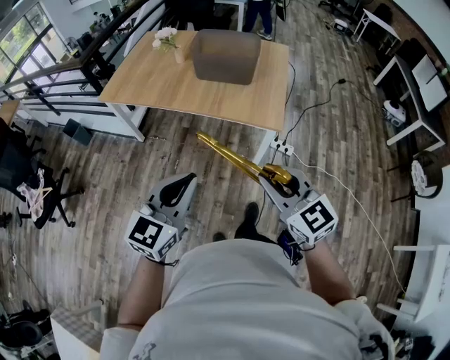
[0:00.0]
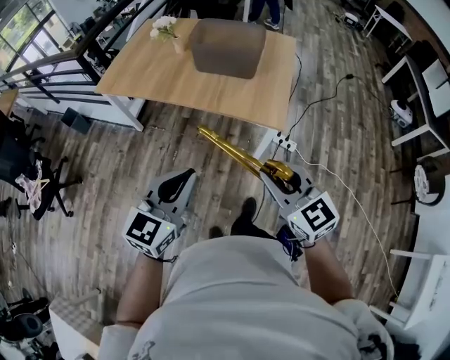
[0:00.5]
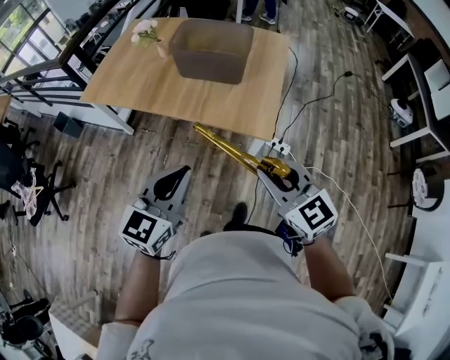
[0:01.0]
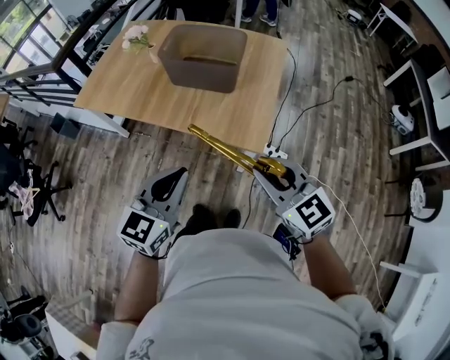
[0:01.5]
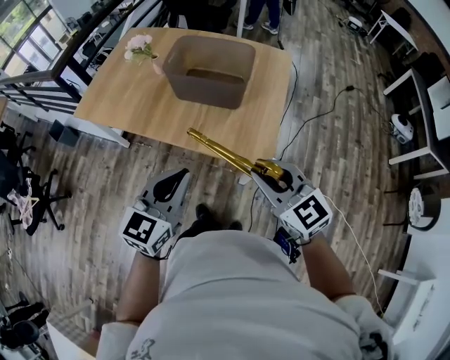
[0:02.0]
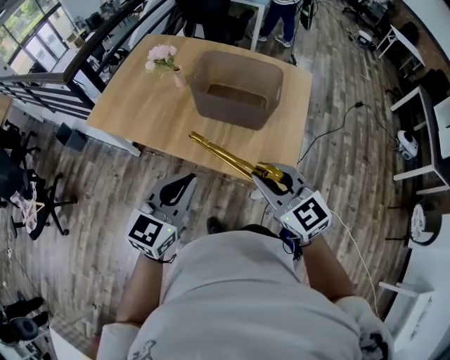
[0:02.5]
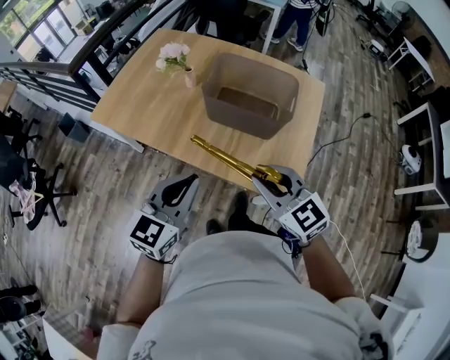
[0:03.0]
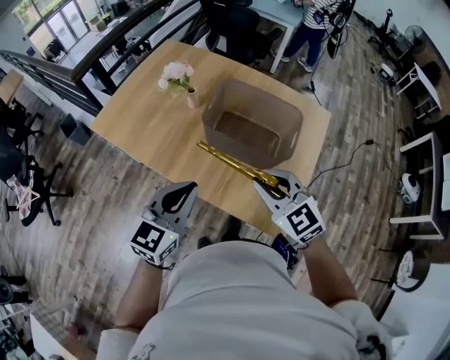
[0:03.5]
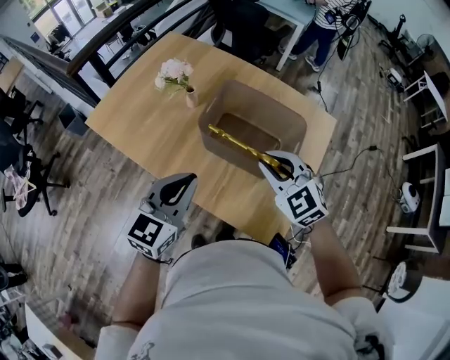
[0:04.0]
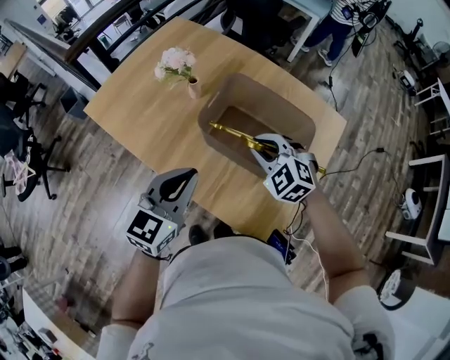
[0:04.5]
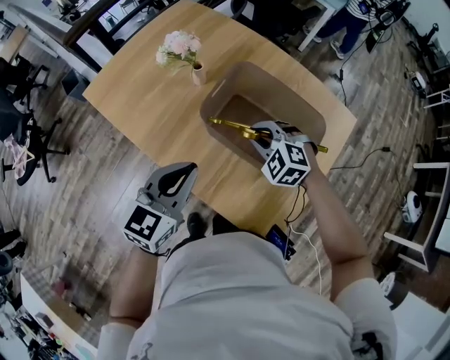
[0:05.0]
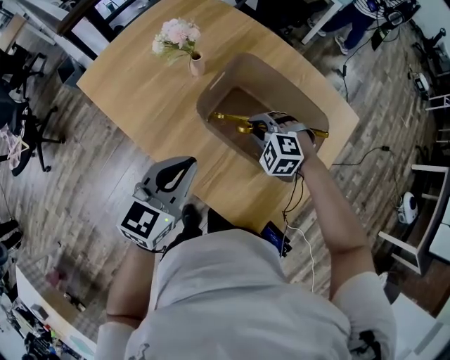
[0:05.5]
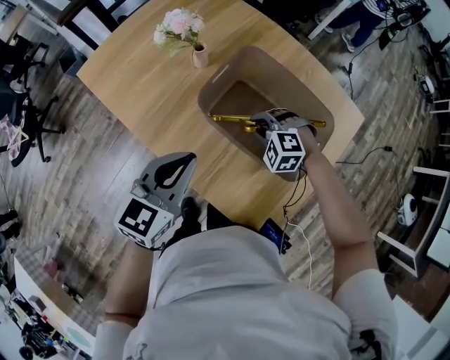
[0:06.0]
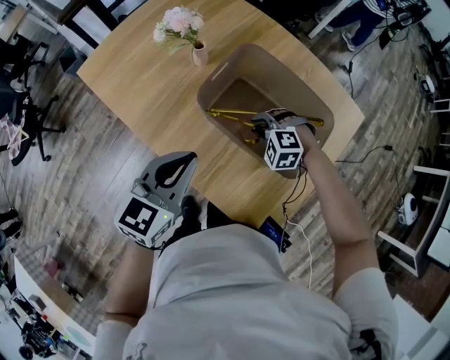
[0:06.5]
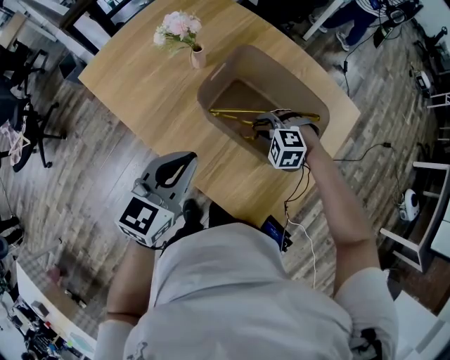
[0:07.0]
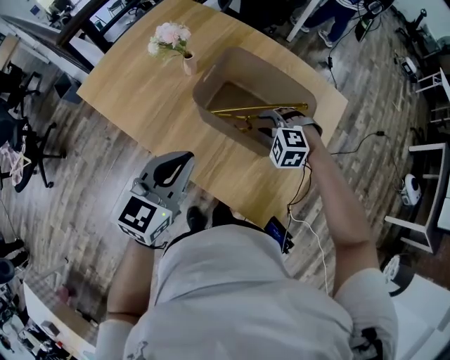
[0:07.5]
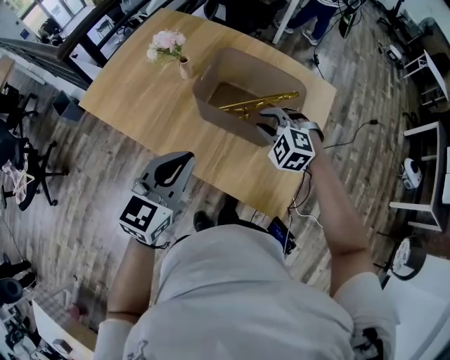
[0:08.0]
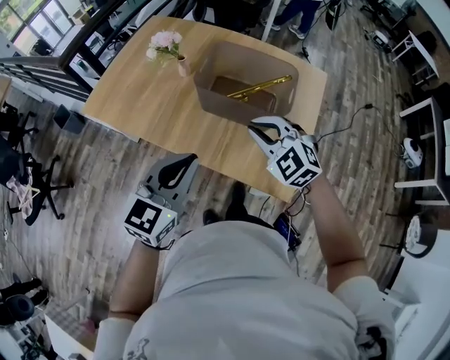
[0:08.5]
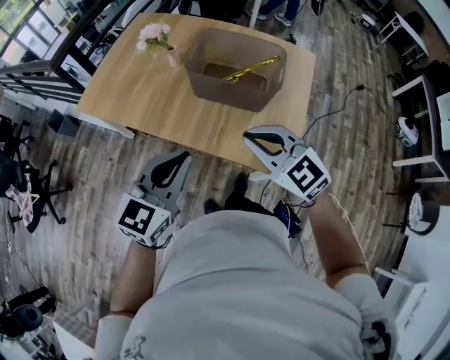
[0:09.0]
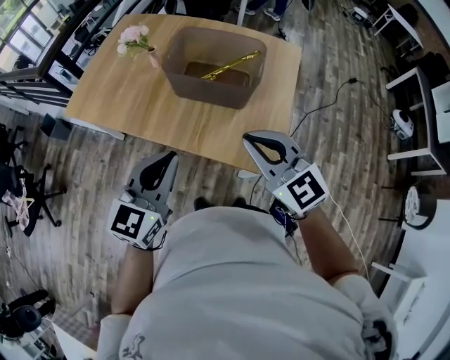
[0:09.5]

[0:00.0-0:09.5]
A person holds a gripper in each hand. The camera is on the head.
0:00.0 to 0:02.0: The left gripper moves forward and to the right, about 30 cm, while the right gripper shifts some 25 cm forward.
0:02.0 to 0:04.0: Both grippers move forward, about 30 cm. The right gripper turns by approximately 30 degrees.
0:04.0 to 0:05.5: The right gripper heads downward and forward, covering approximately 20 cm, and rotates some 40 degrees, while the left gripper travels downward and forward by some 10 cm.
0:05.5 to 0:07.5: The left gripper ends up roughly 5 cm from where it was. Meanwhile the right gripper changes place by about 5 cm.
0:07.5 to 0:09.5: The left gripper goes about 15 cm backward. The right gripper travels backward and upward by approximately 35 cm, tilts its fingers some 50 degrees upward, and closes its fingers.

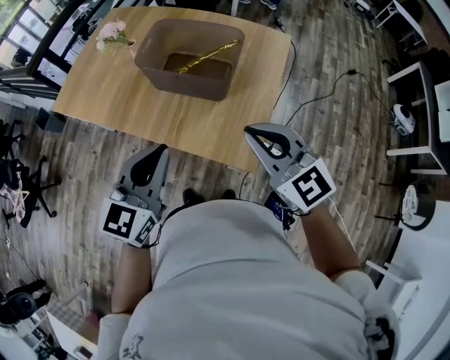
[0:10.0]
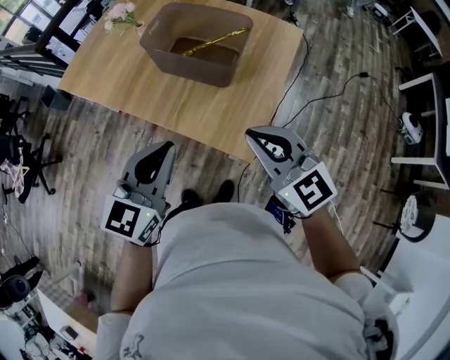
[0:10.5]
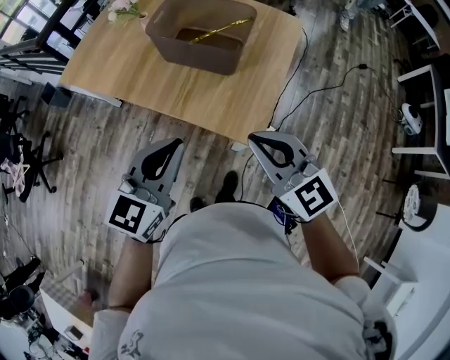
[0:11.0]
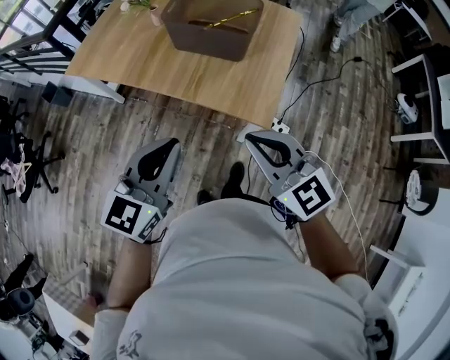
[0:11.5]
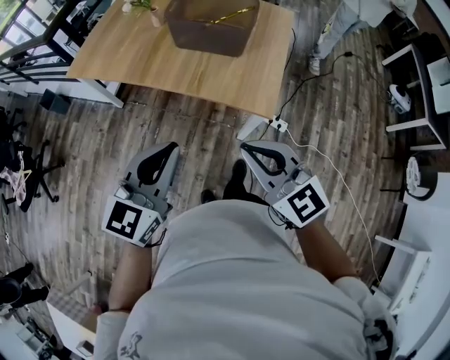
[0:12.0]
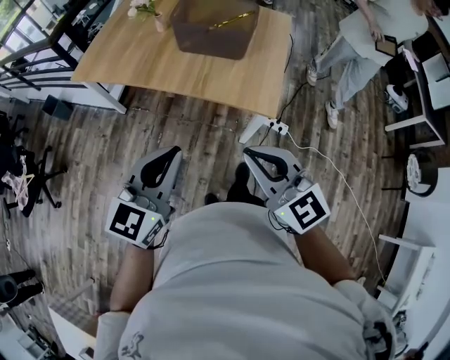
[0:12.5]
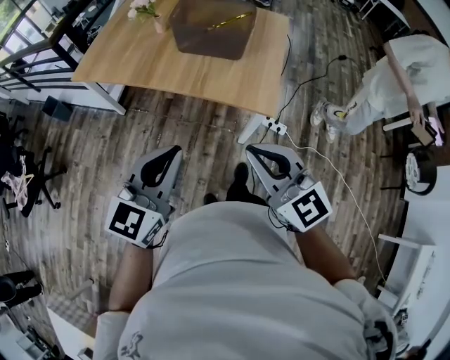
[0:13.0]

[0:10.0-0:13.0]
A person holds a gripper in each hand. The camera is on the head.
0:10.0 to 0:11.5: Both grippers move backward and to the left, roughly 20 cm.
0:11.5 to 0:13.0: The two grippers go approximately 10 cm backward and to the left.

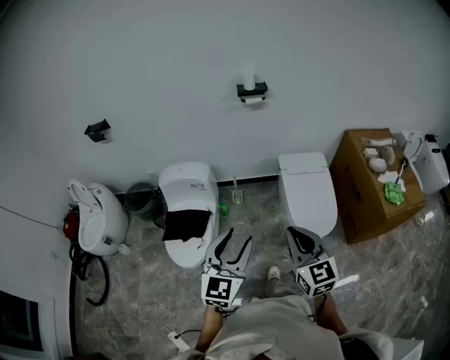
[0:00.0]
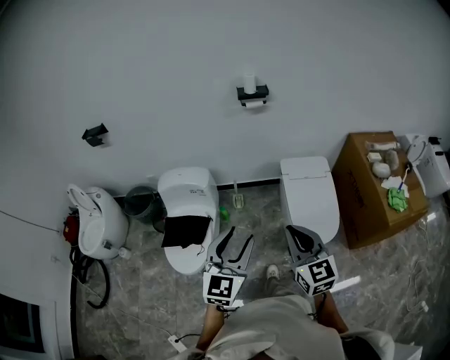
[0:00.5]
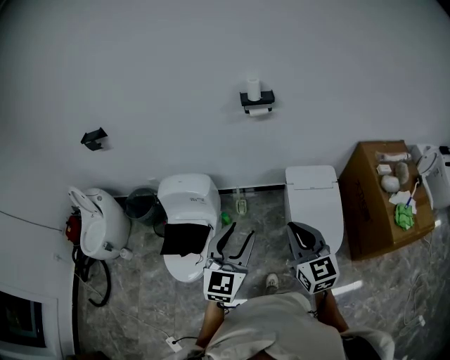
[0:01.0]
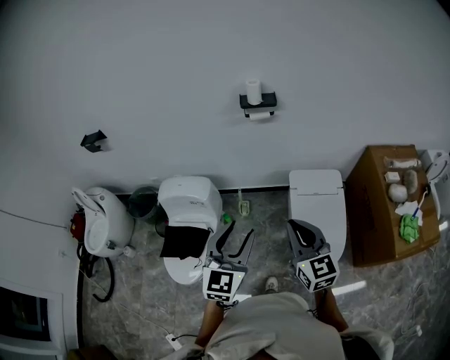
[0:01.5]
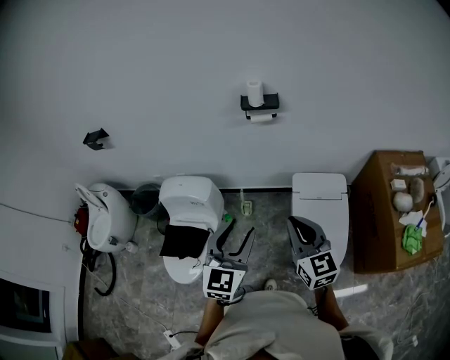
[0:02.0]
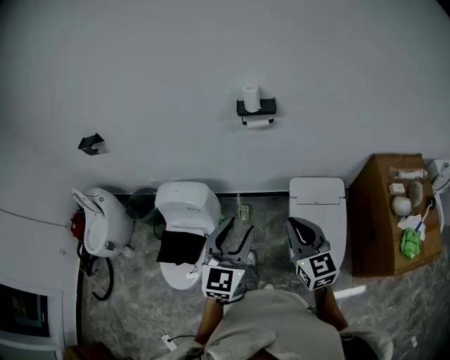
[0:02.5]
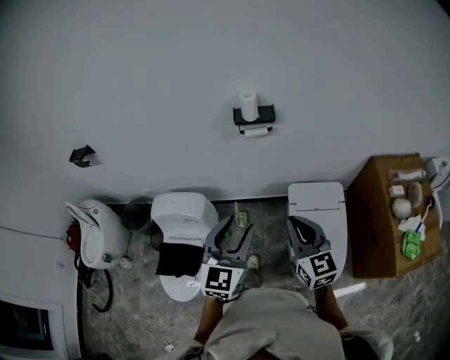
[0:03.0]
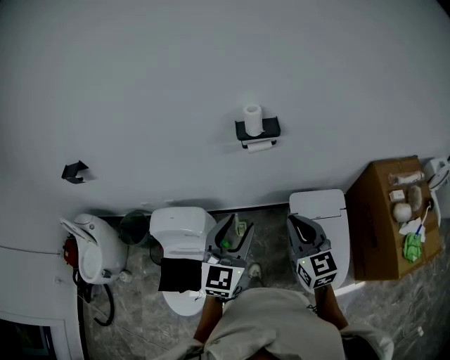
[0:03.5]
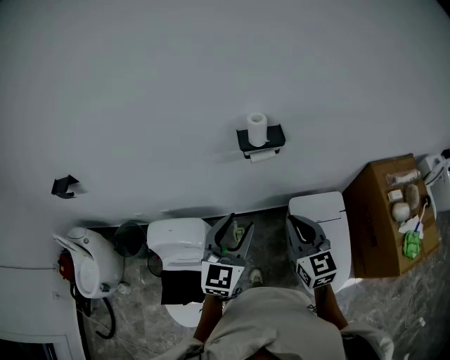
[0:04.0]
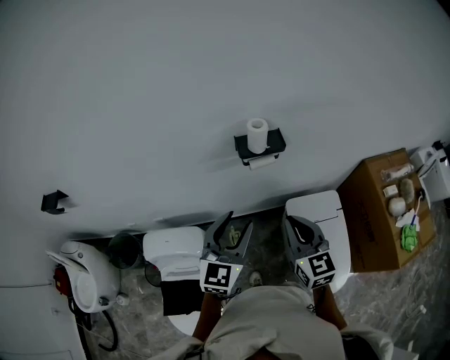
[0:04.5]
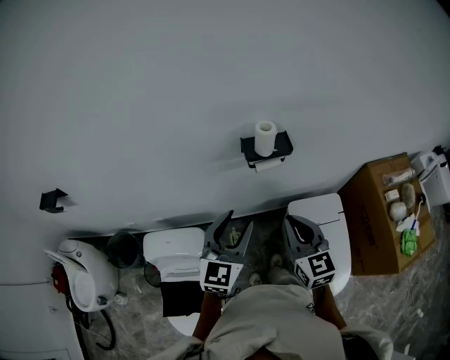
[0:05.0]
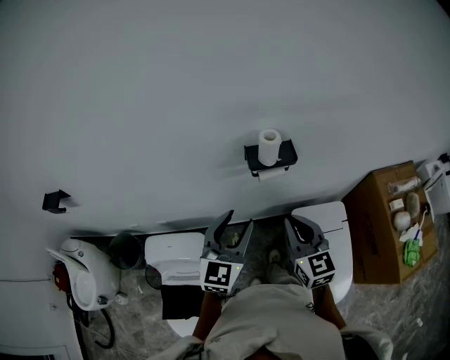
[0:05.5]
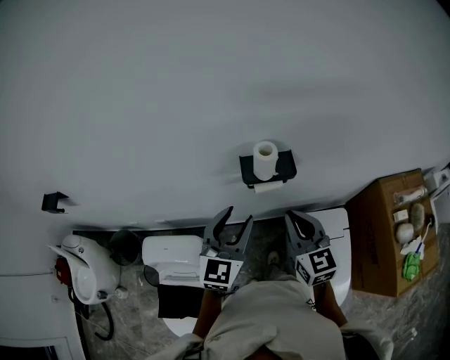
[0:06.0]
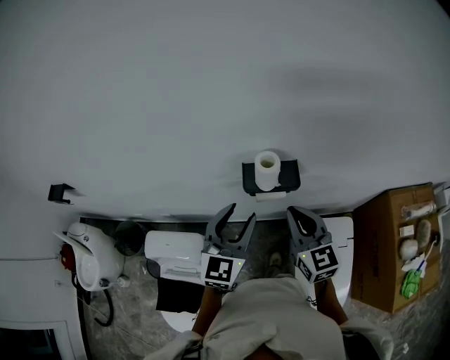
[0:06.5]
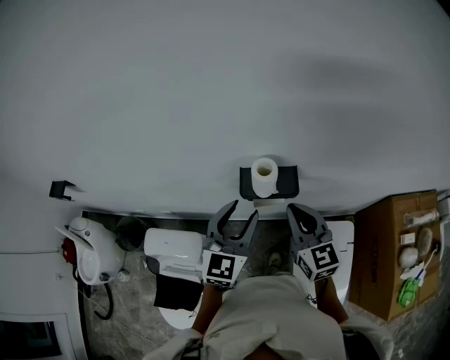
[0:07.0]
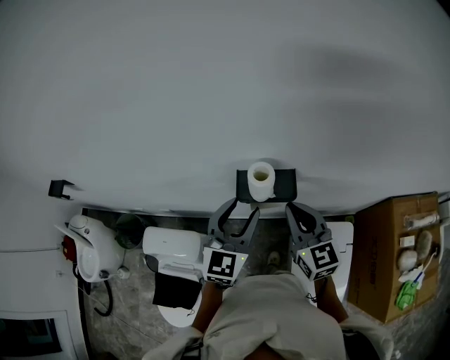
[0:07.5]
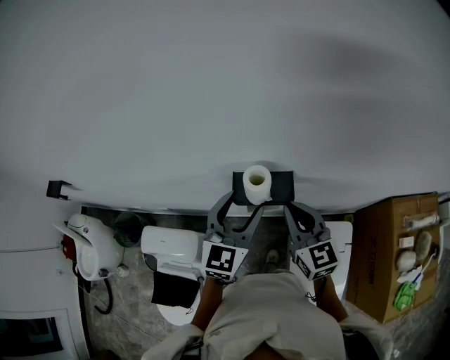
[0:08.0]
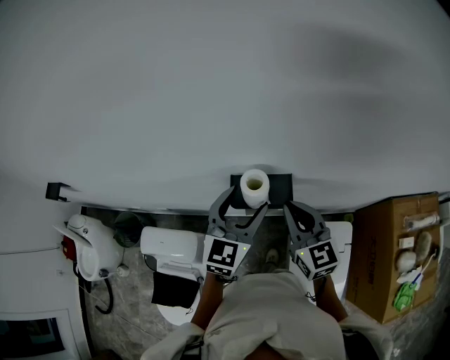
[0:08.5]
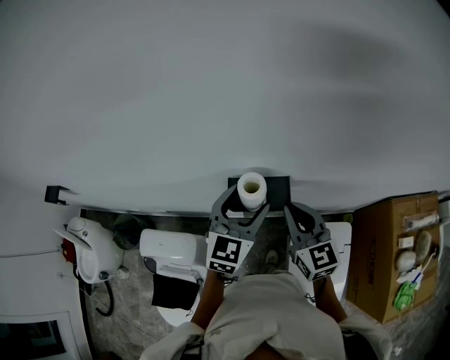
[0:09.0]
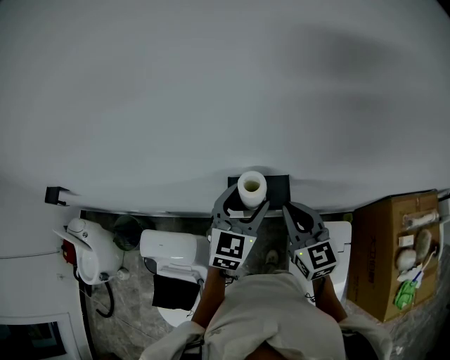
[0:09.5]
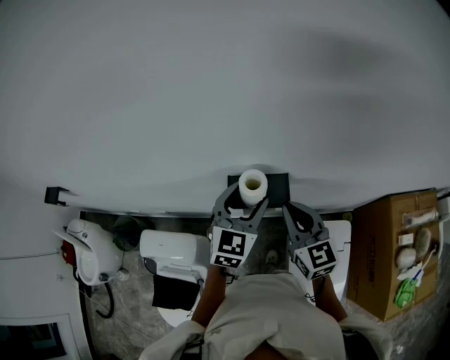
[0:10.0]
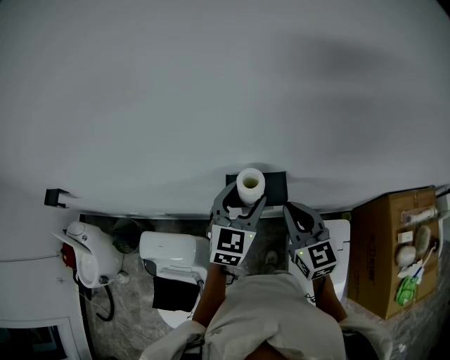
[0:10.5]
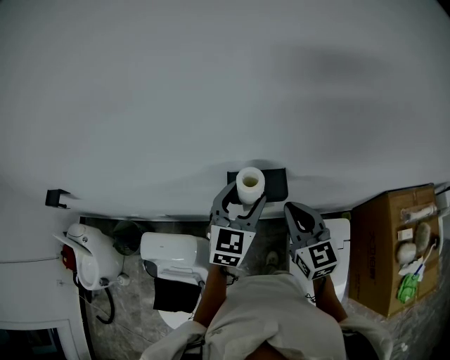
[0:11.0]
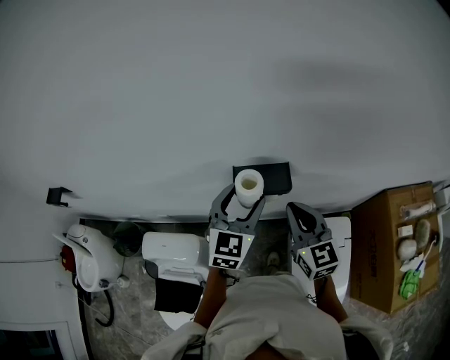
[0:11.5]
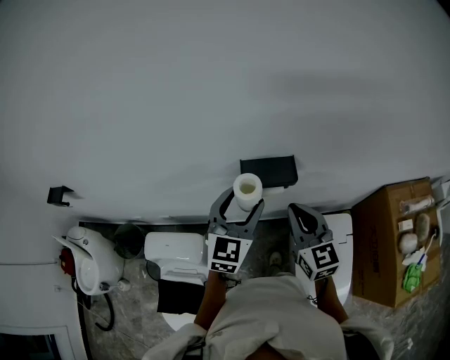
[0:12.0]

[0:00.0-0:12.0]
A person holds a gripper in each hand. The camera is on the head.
0:00.0 to 0:02.0: The grippers both shift forward by about 25 cm.
0:02.0 to 0:04.0: The two grippers go about 20 cm forward.
0:04.0 to 0:06.0: The grippers both shift forward by some 15 cm.
0:06.0 to 0:08.0: The left gripper moves forward and to the right, roughly 10 cm. Meanwhile the right gripper travels forward by approximately 10 cm.
0:08.0 to 0:10.0: The grippers stay close to where they were, moving slightly.
0:10.0 to 0:12.0: Both grippers move backward, roughly 5 cm.

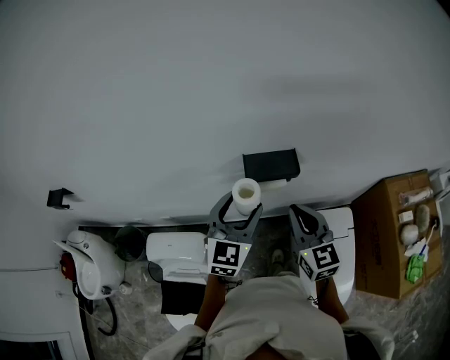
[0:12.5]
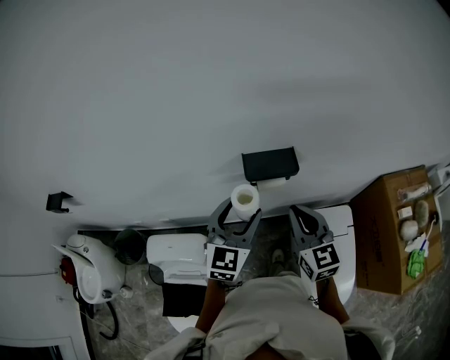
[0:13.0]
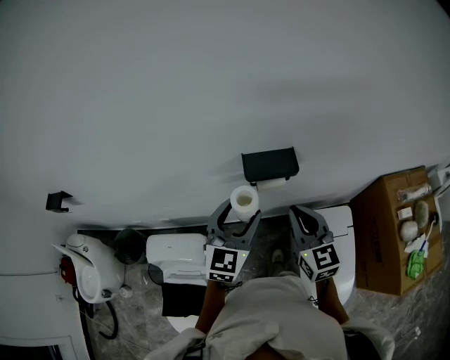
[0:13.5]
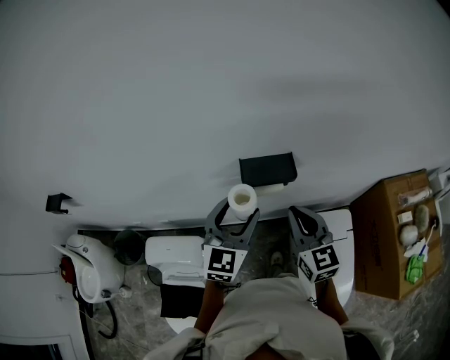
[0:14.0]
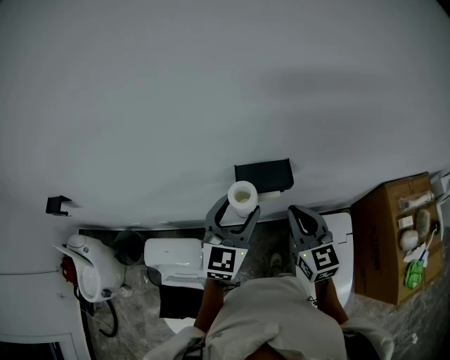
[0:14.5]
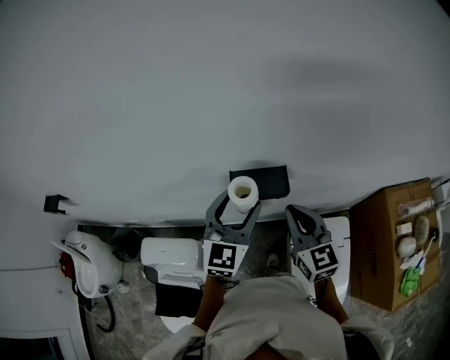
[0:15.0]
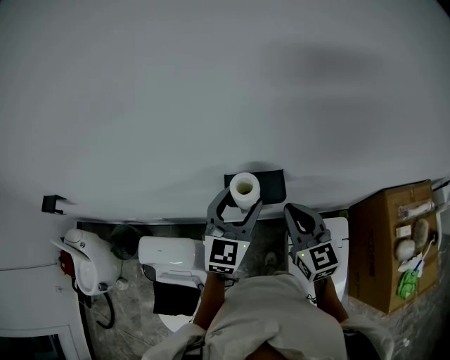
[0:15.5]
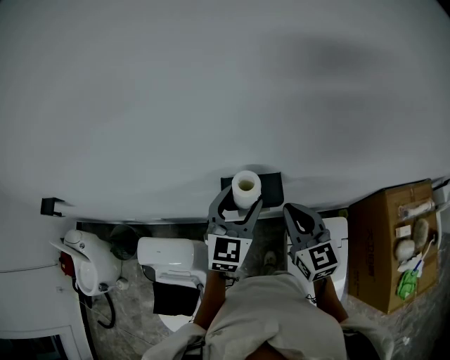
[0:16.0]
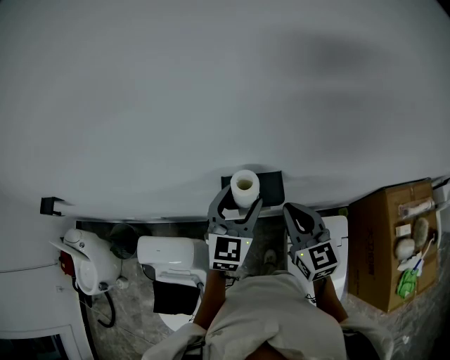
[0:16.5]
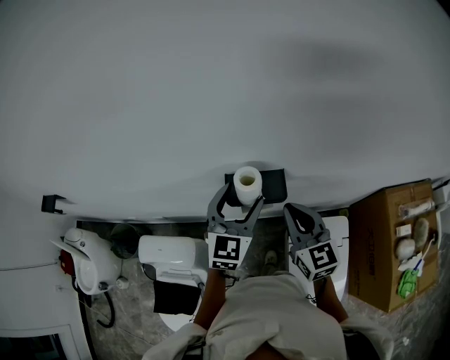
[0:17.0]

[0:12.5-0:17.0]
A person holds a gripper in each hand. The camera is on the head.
0:12.5 to 0:14.5: The grippers stay close to where they were, moving slightly.
0:14.5 to 0:17.0: The left gripper shifts some 5 cm forward. The right gripper moves about 5 cm.
